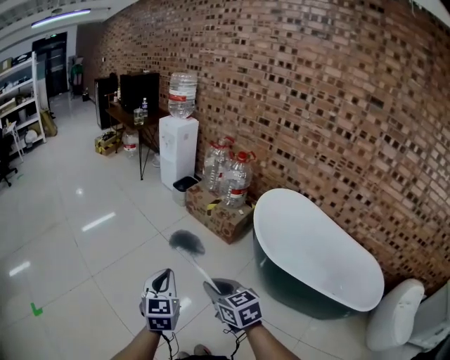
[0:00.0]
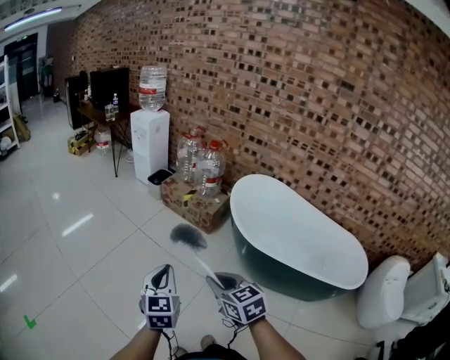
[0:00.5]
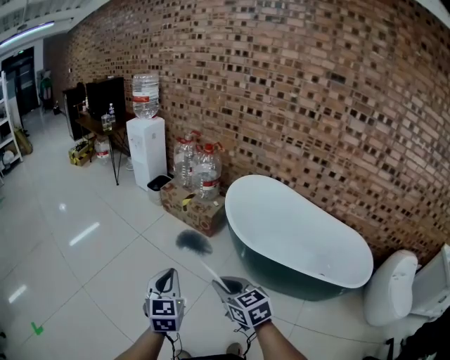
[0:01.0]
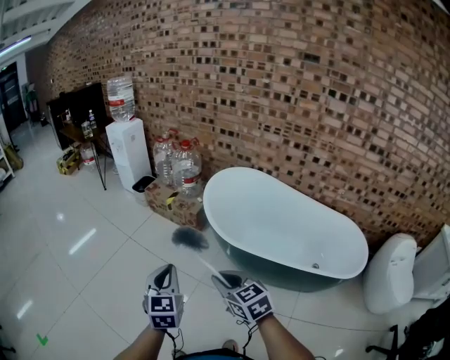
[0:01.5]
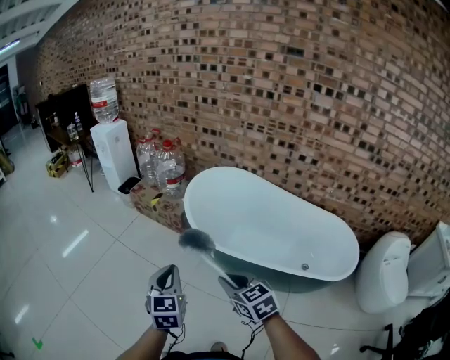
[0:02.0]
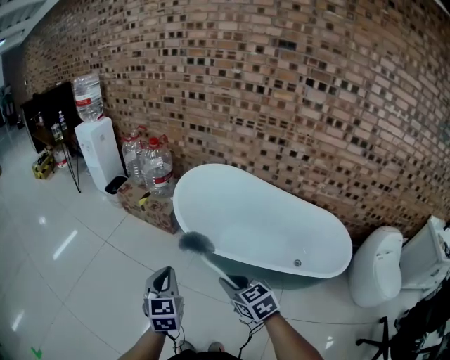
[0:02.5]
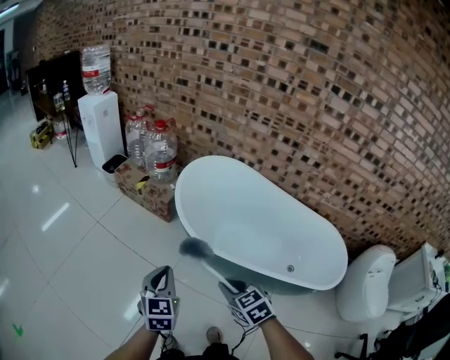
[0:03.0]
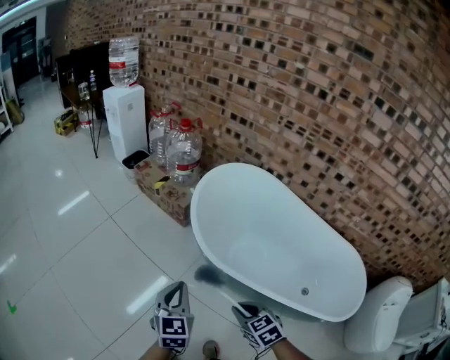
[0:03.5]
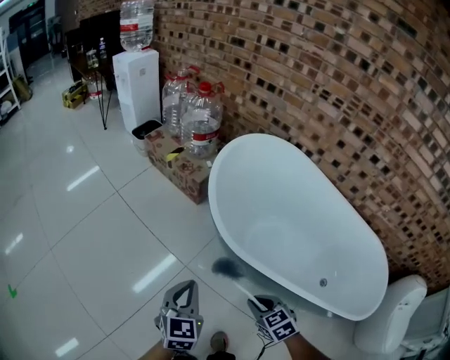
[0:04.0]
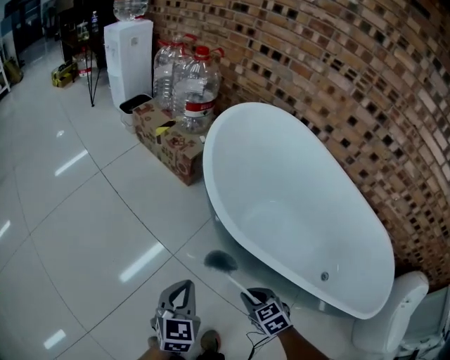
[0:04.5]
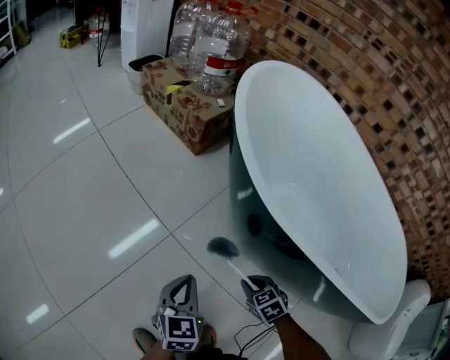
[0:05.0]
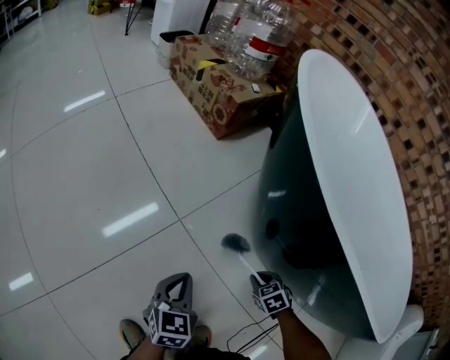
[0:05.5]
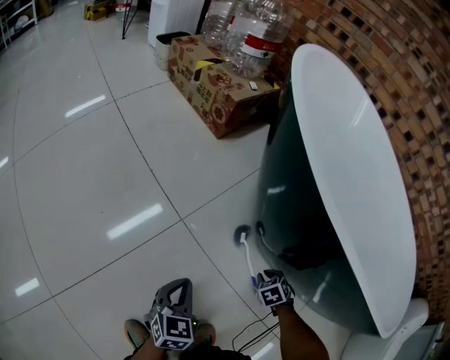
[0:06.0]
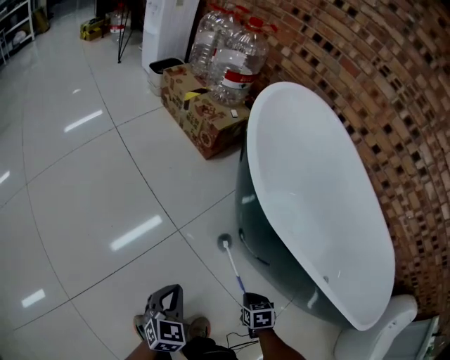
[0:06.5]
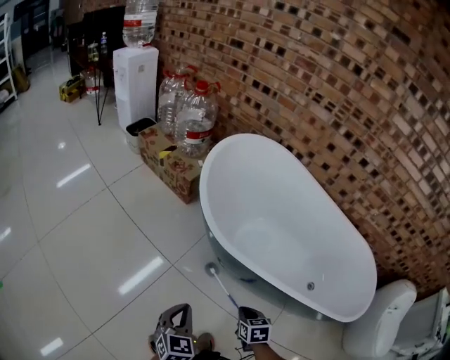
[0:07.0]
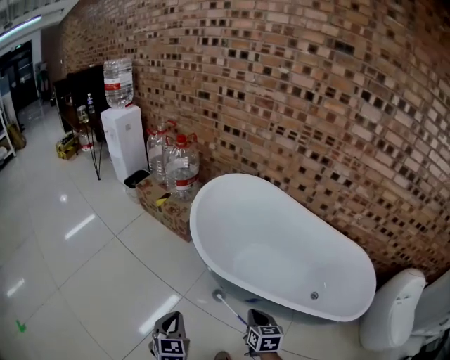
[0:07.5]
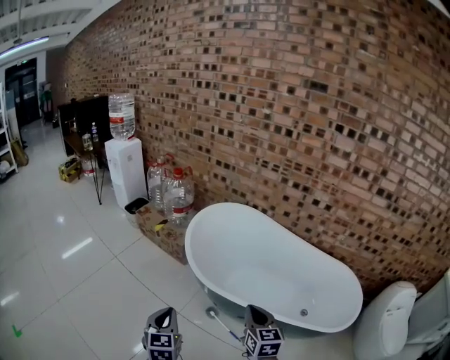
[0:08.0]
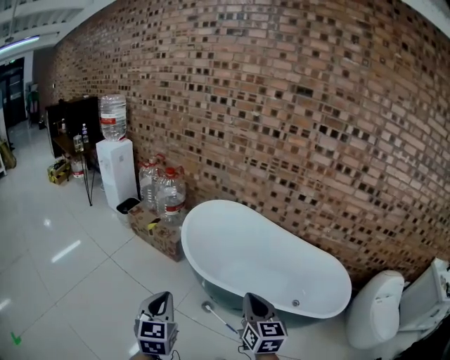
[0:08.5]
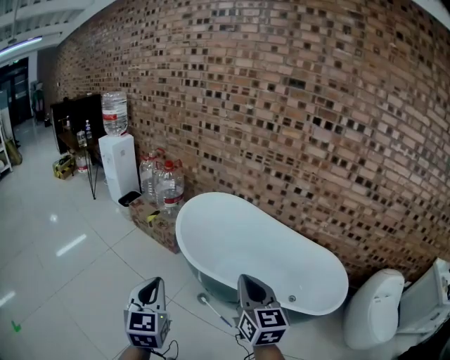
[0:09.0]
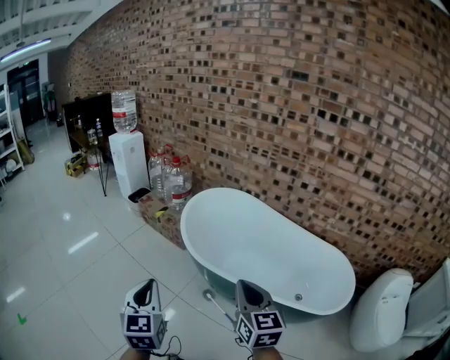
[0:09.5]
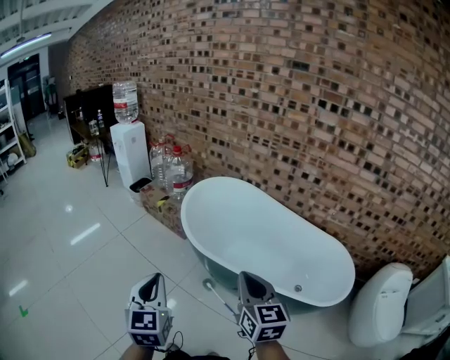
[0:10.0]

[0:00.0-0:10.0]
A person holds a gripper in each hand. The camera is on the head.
0:00.0 to 0:02.0: The two grippers go about 35 cm to the right.
0:02.0 to 0:04.0: The grippers both shift downward and forward by approximately 35 cm. The right gripper swivels some 20 degrees.
0:04.0 to 0:06.0: Both grippers travel together downward, roughly 50 cm. The right gripper swivels approximately 30 degrees.
0:06.0 to 0:08.0: Both grippers travel together upward, approximately 80 cm. The right gripper points its fingers about 50 degrees further upward, and closes up.
0:08.0 to 0:10.0: The right gripper is displaced upward and backward by some 20 cm. Meanwhile the left gripper heads backward and upward, covering about 20 cm.

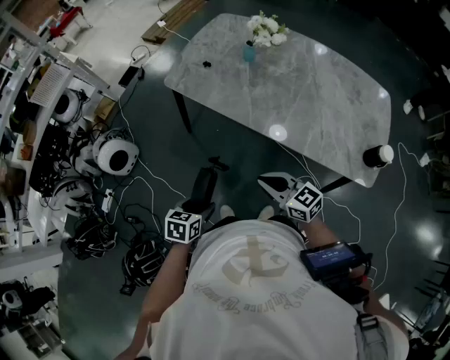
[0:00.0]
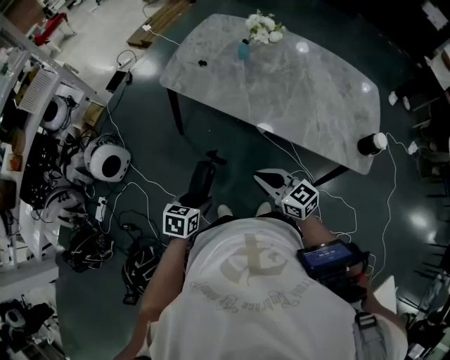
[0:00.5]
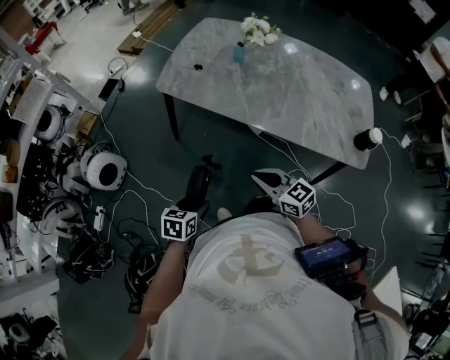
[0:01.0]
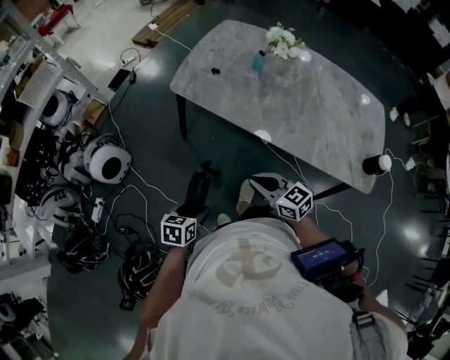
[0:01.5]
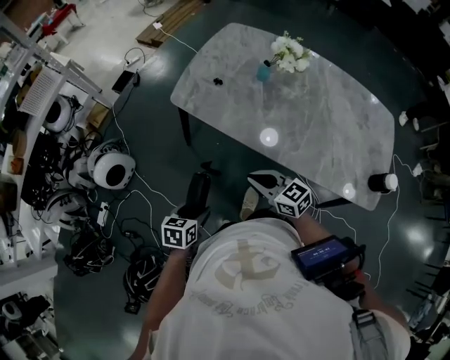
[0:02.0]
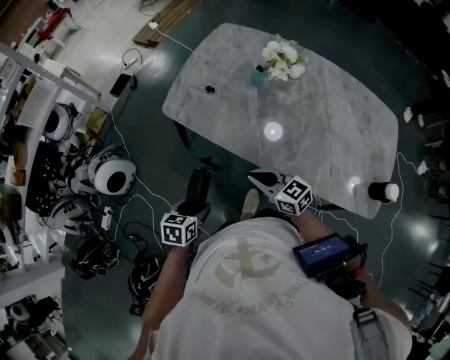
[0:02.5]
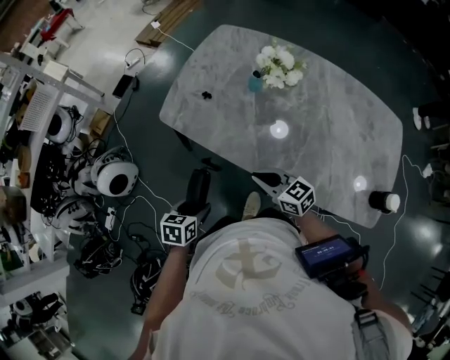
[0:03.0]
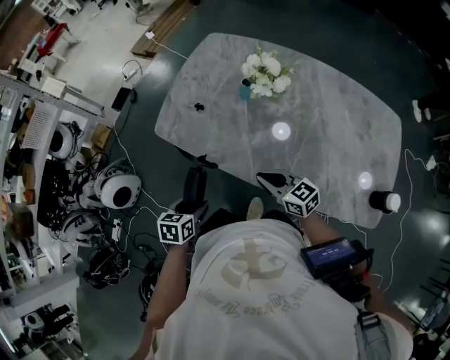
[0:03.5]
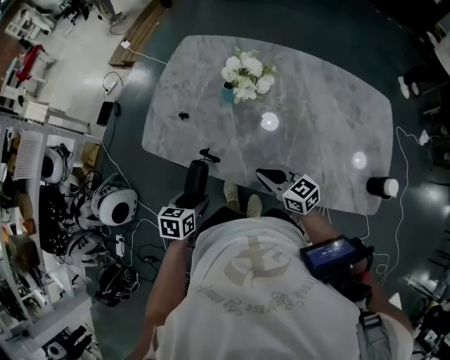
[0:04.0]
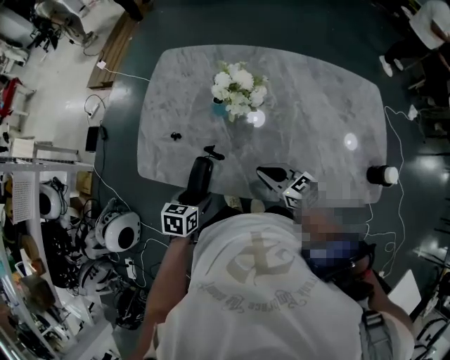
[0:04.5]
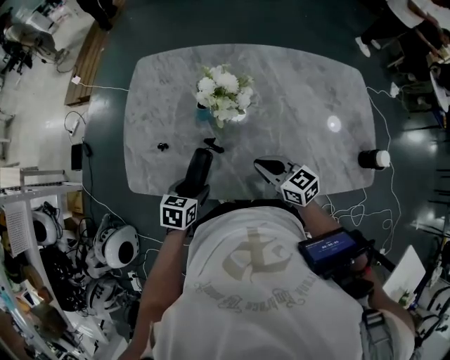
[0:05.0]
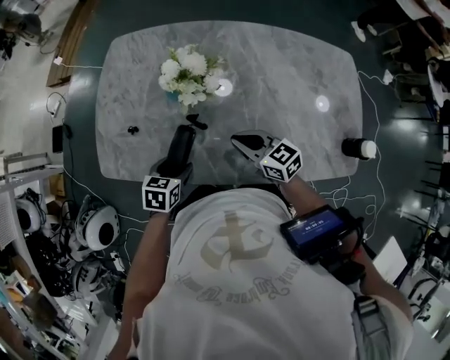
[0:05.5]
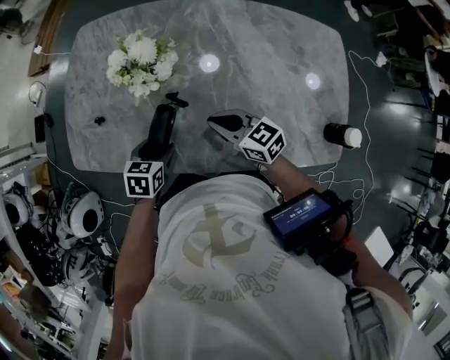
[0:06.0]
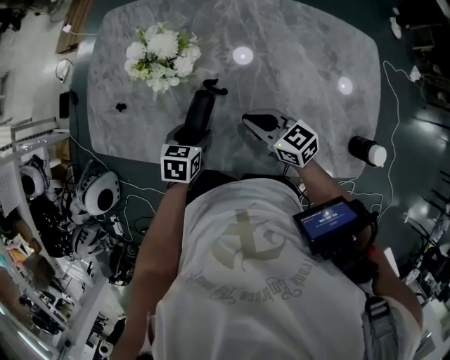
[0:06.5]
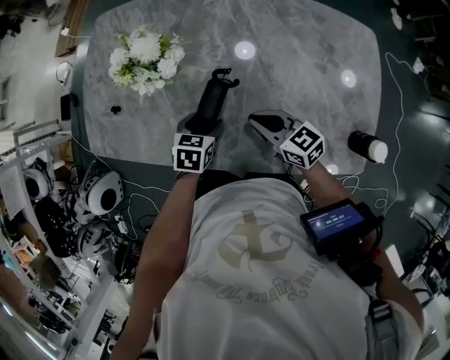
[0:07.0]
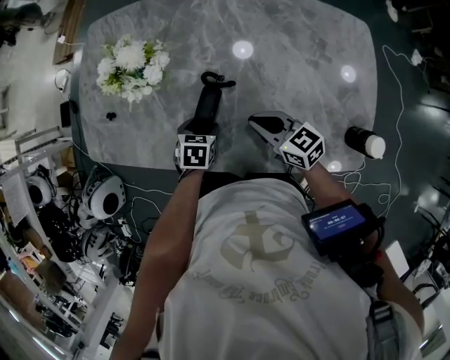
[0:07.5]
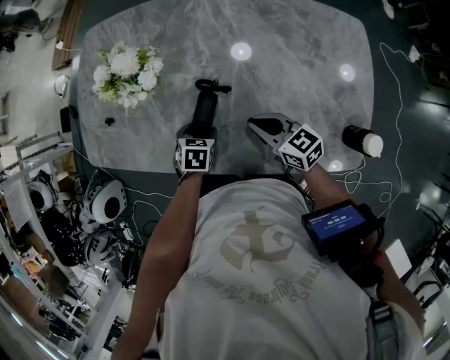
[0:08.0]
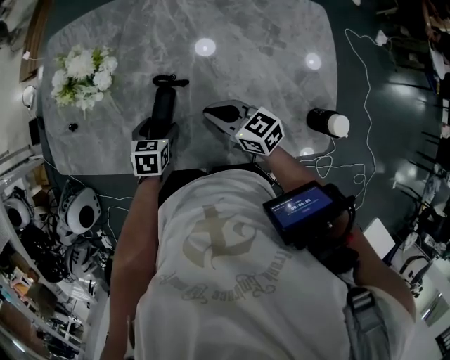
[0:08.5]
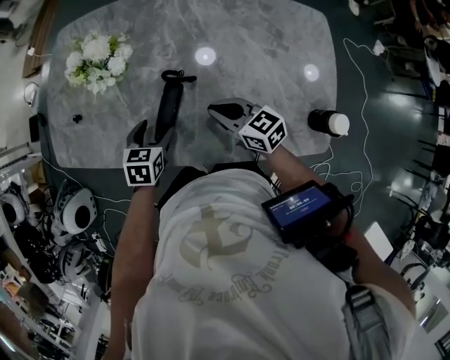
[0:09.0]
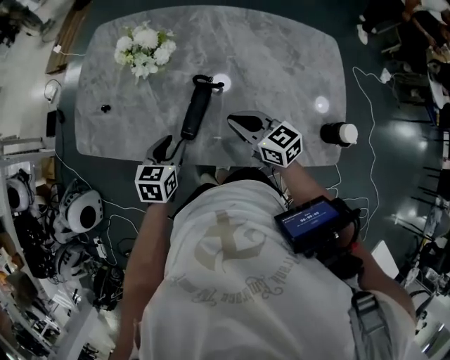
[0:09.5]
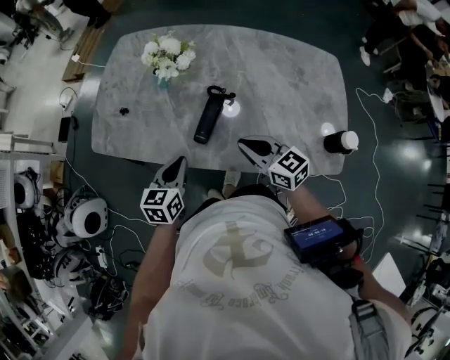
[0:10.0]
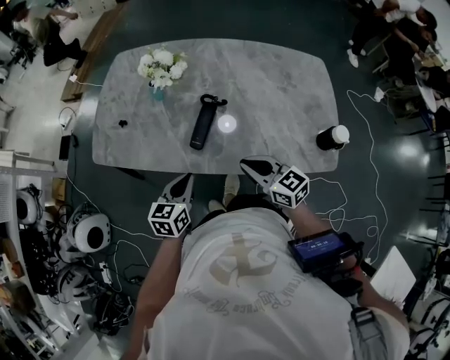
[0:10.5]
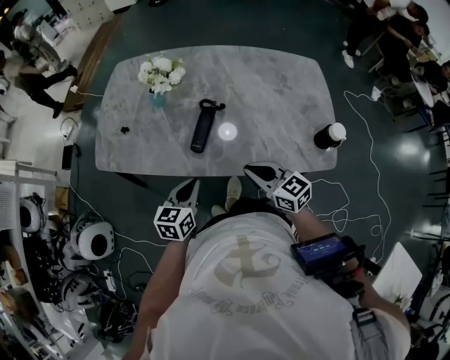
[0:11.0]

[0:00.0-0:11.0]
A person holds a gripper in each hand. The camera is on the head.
0:00.0 to 0:02.0: The grippers both shift forward and to the left by some 15 cm.
0:02.0 to 0:03.5: The right gripper heads to the right and forward, covering about 15 cm. The left gripper moves forward and to the right, some 15 cm.
0:03.5 to 0:05.5: The left gripper changes place by roughly 20 cm, and rotates roughly 30 degrees. Meanwhile the right gripper changes place by approximately 15 cm.
0:05.5 to 0:07.5: The right gripper moves to the right, about 15 cm. The left gripper is displaced to the right and downward by some 20 cm.
0:07.5 to 0:09.0: The left gripper moves upward, approximately 5 cm.
0:09.0 to 0:11.0: The grippers both shift backward and upward by approximately 20 cm. The left gripper swivels approximately 20 degrees, and closes.

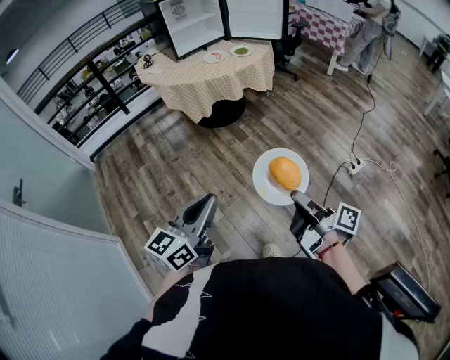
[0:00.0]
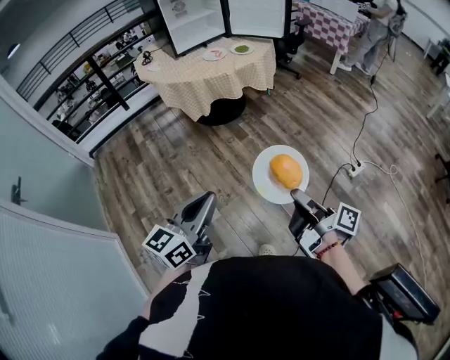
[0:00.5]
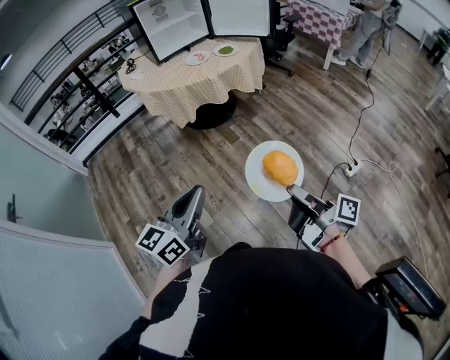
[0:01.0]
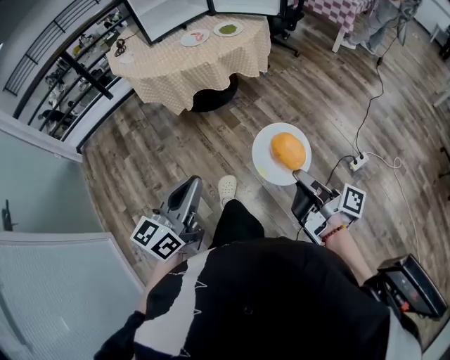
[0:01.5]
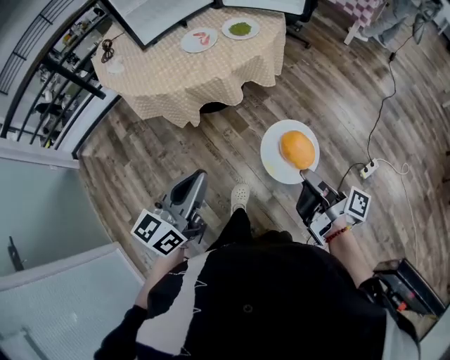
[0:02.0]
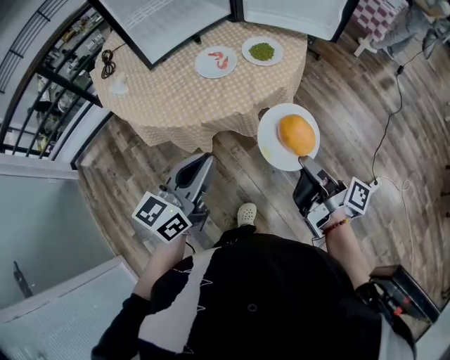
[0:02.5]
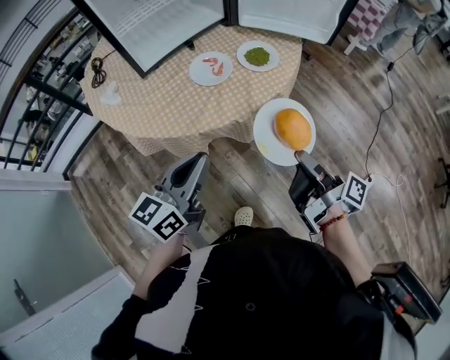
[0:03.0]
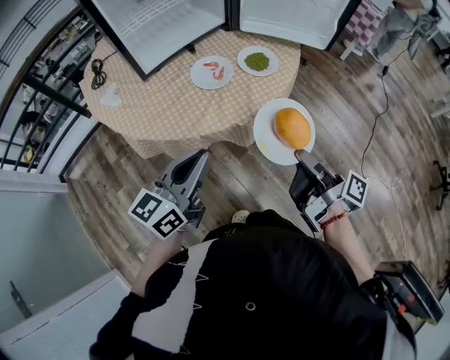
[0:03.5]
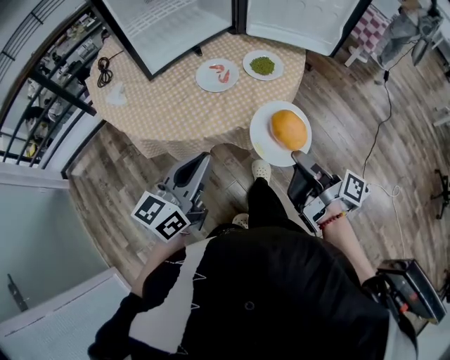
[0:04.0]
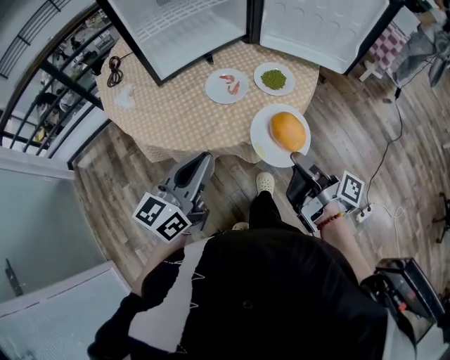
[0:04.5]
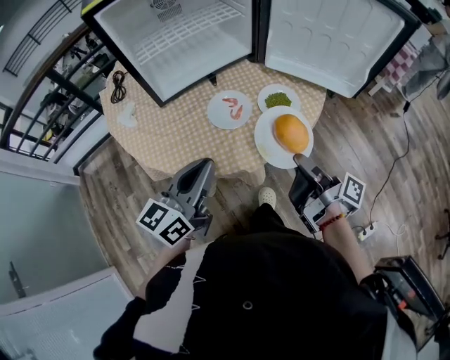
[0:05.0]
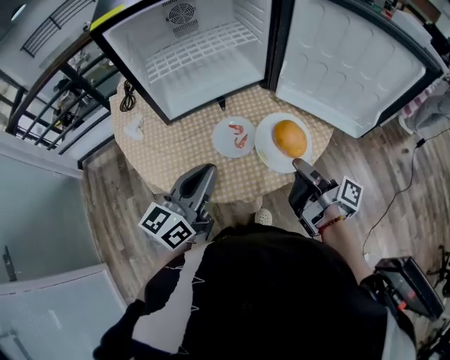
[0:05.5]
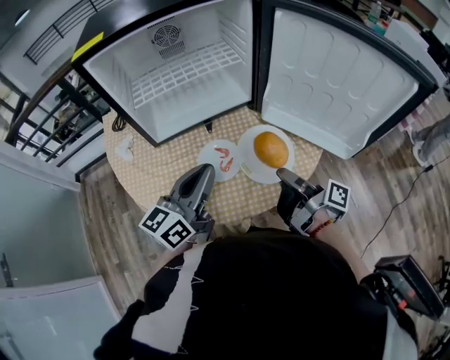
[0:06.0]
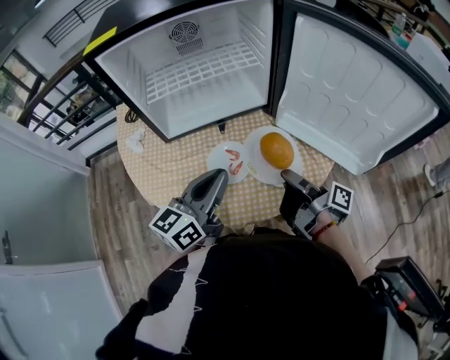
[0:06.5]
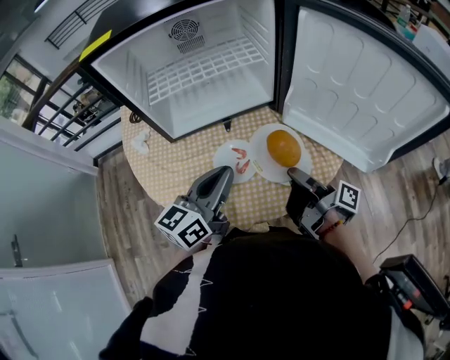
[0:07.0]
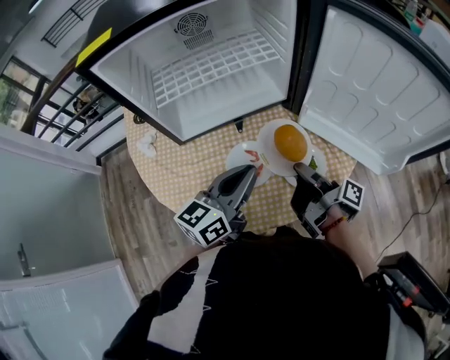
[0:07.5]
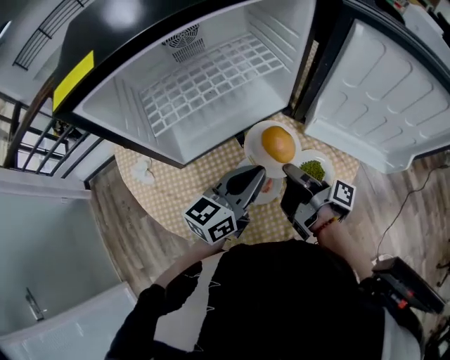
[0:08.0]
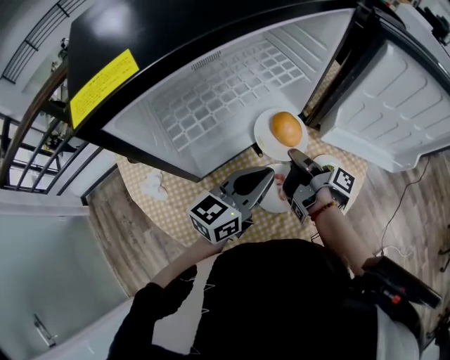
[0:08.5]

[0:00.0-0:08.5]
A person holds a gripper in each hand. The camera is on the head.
0:00.0 to 0:02.0: The left gripper moves approximately 40 cm.
0:02.0 to 0:04.0: The left gripper moves some 25 cm.
0:04.0 to 0:06.5: The left gripper shifts by about 25 cm, and rotates roughly 20 degrees.
0:06.5 to 0:08.5: The left gripper ends up about 15 cm from where it was, and rotates about 30 degrees.
